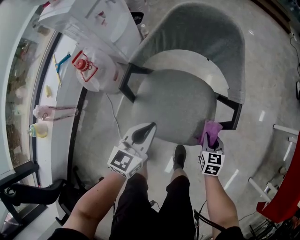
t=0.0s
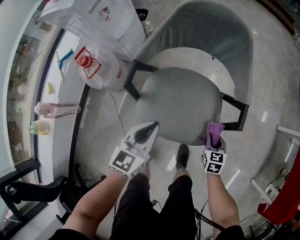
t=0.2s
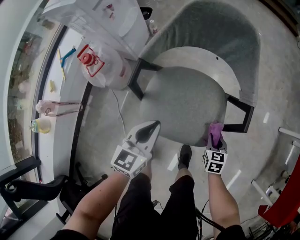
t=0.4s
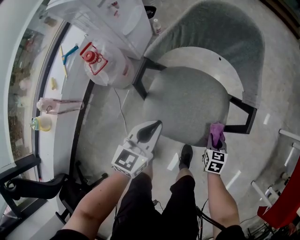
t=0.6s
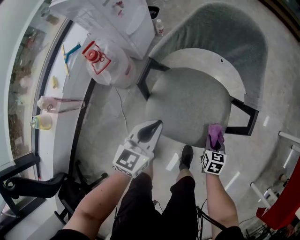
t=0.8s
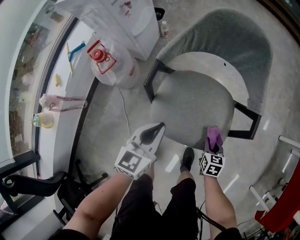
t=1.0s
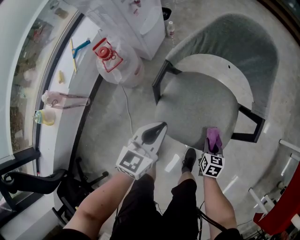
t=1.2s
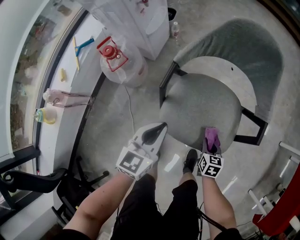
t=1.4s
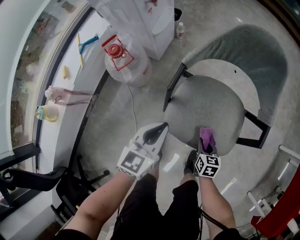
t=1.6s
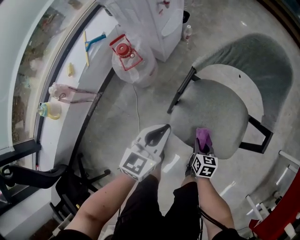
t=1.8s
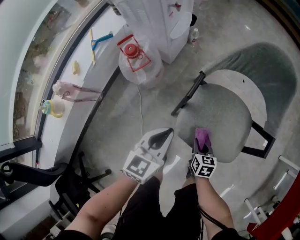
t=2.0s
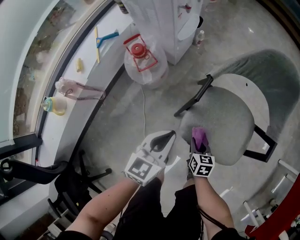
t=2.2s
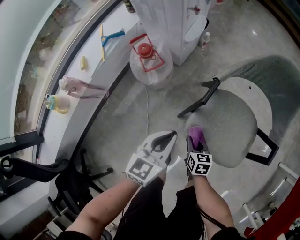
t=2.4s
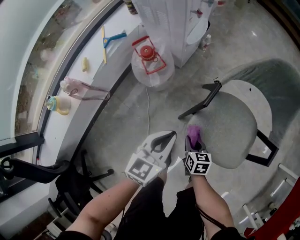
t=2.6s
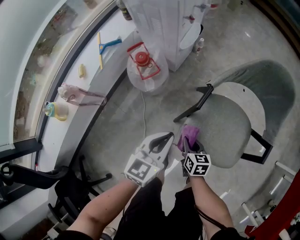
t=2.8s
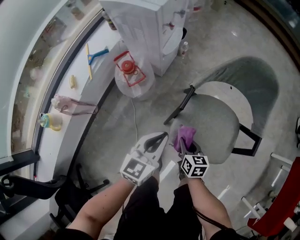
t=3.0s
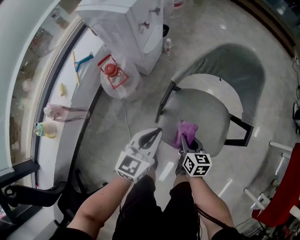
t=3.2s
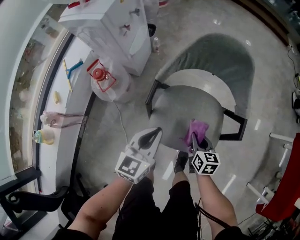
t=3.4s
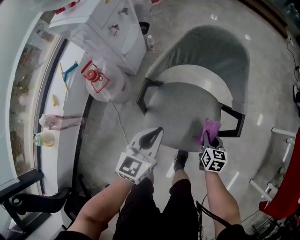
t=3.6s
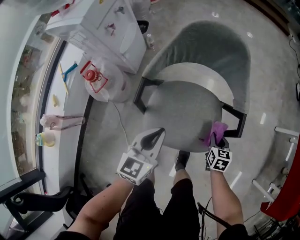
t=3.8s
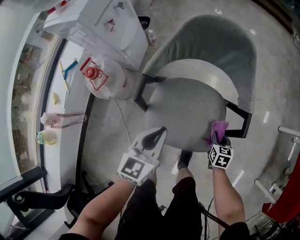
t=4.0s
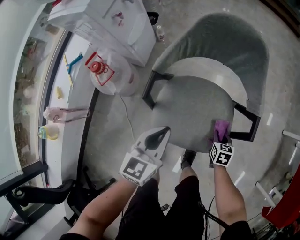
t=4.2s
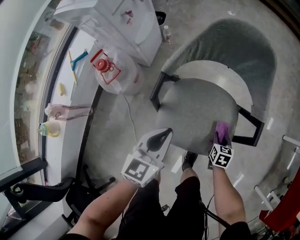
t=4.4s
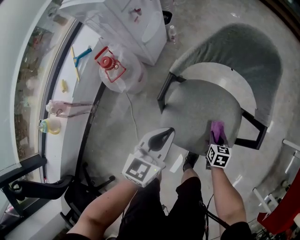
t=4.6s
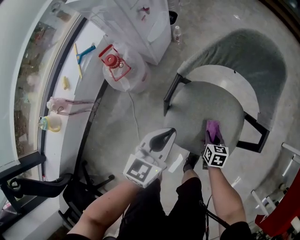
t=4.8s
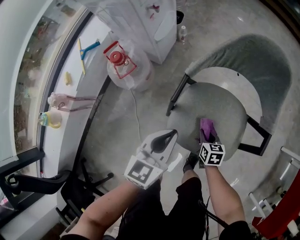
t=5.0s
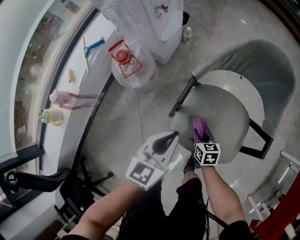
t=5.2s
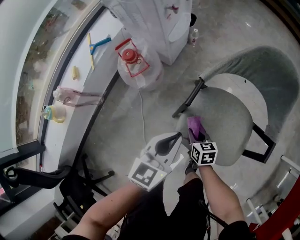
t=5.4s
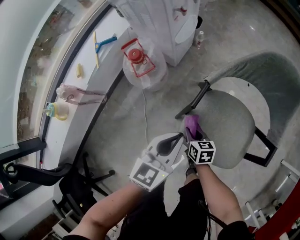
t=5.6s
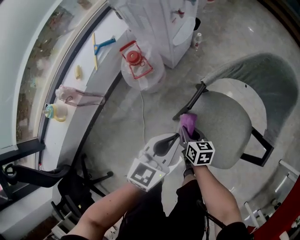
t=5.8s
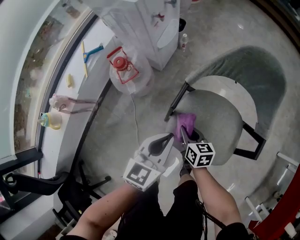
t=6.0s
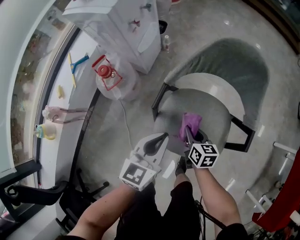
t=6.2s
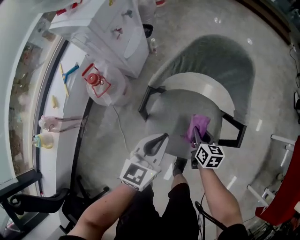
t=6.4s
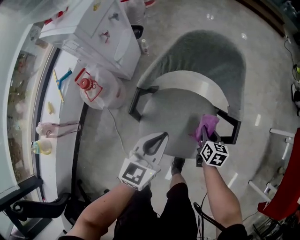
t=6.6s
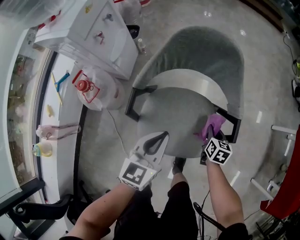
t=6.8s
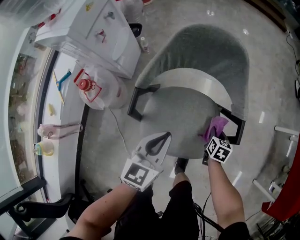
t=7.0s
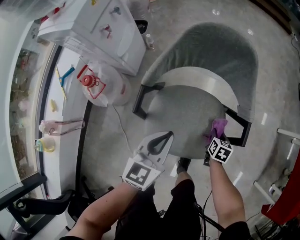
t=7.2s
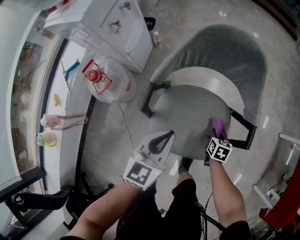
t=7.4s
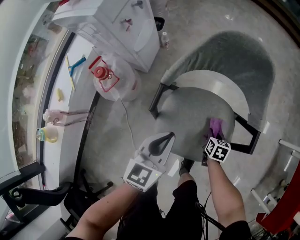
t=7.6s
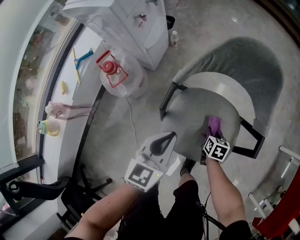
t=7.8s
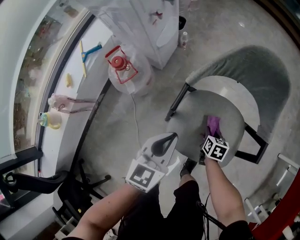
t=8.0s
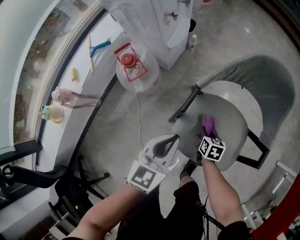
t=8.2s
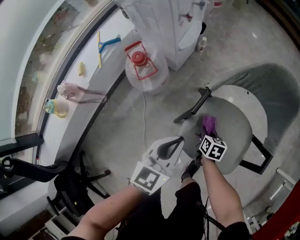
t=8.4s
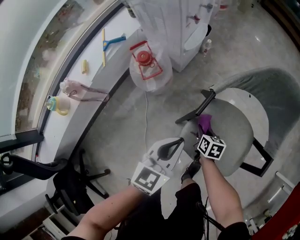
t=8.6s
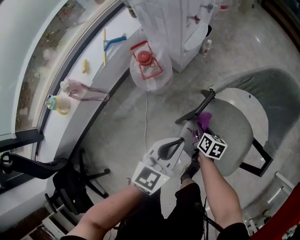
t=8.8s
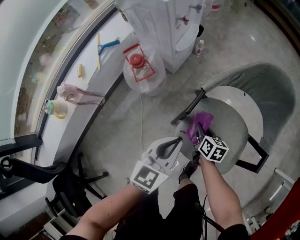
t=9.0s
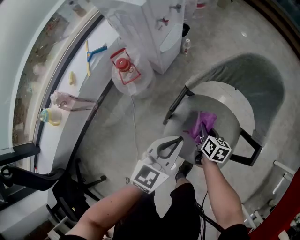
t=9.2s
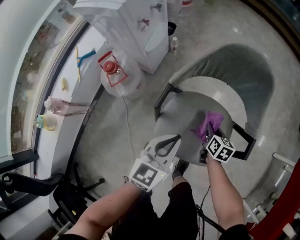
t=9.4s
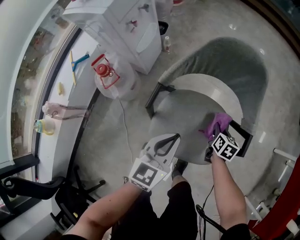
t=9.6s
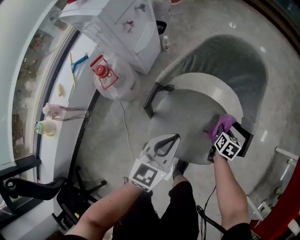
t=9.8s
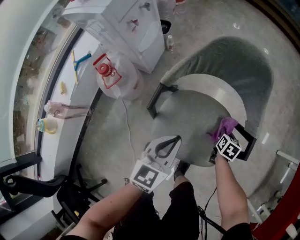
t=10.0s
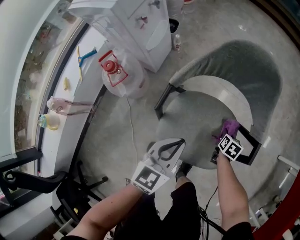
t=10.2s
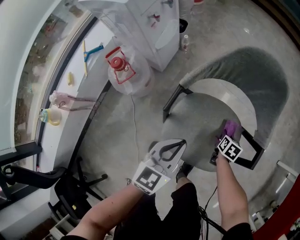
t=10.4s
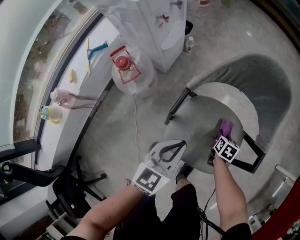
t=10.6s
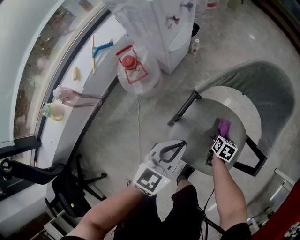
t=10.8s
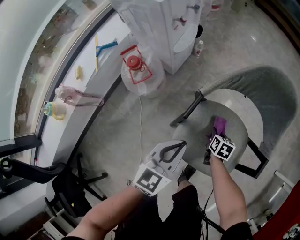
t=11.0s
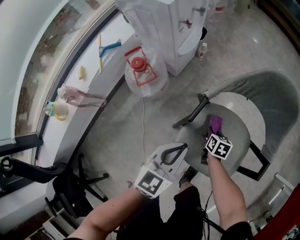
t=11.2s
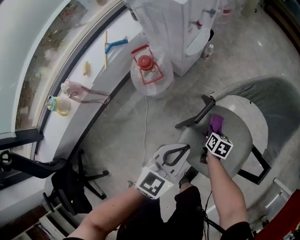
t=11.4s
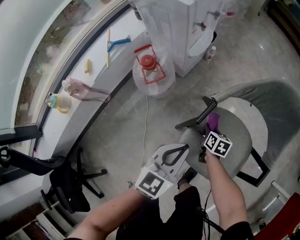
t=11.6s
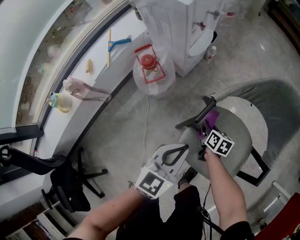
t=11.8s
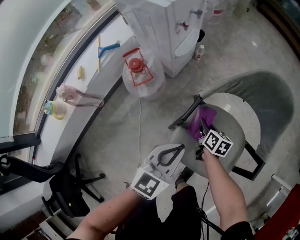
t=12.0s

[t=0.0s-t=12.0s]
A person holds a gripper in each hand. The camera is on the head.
t=0.0s to t=1.6s: The grippers both shift to the left by roughly 15 cm.
t=1.6s to t=3.0s: The left gripper travels to the left by about 5 cm; the right gripper shifts about 20 cm to the left and upward.
t=3.0s to t=4.4s: The left gripper travels to the right by roughly 10 cm. The right gripper is displaced to the right by approximately 25 cm, and swivels about 30 degrees.
t=4.4s to t=6.0s: The left gripper changes place by some 5 cm. Meanwhile the right gripper ends up roughly 30 cm from where it was, and turns by some 30 degrees.
t=6.0s to t=7.6s: The right gripper ends up approximately 25 cm from where it was, and turns by roughly 30 degrees.
t=7.6s to t=9.0s: The left gripper moves to the left, roughly 10 cm, while the right gripper moves to the left, about 20 cm, and rotates about 30 degrees.
t=9.0s to t=10.4s: The left gripper changes place by approximately 10 cm. The right gripper moves about 25 cm, and turns by roughly 30 degrees.
t=10.4s to t=12.0s: The left gripper changes place by some 10 cm; the right gripper moves some 25 cm, and rotates some 30 degrees.

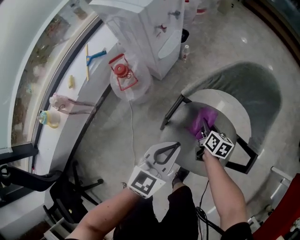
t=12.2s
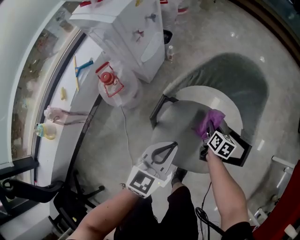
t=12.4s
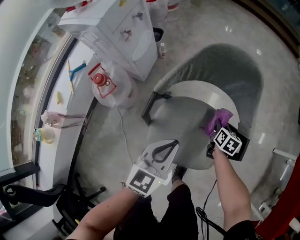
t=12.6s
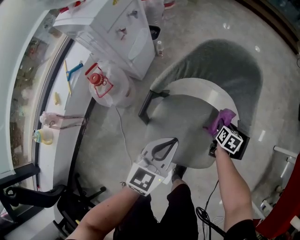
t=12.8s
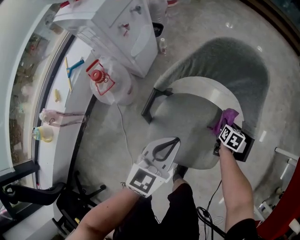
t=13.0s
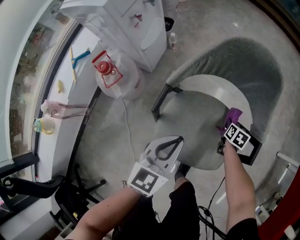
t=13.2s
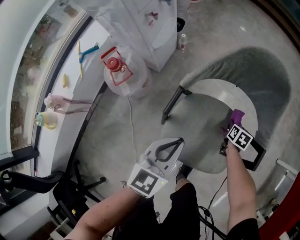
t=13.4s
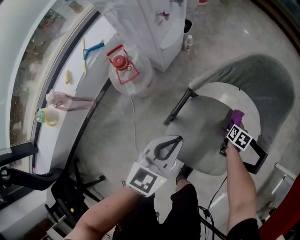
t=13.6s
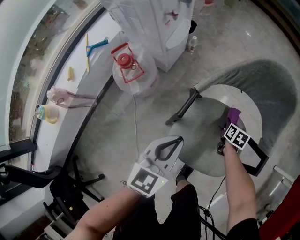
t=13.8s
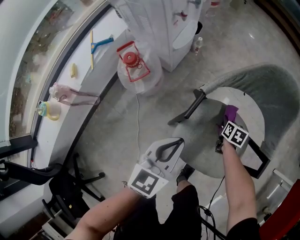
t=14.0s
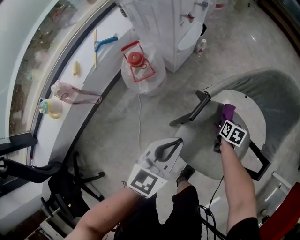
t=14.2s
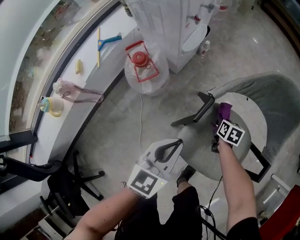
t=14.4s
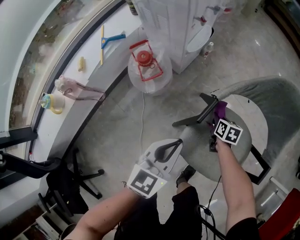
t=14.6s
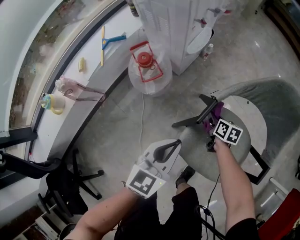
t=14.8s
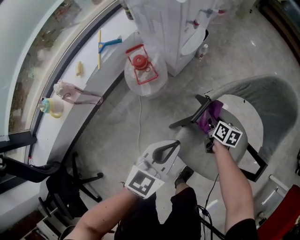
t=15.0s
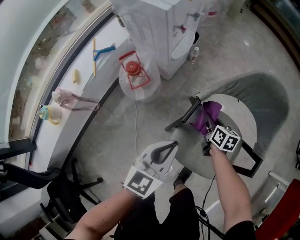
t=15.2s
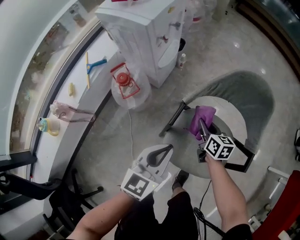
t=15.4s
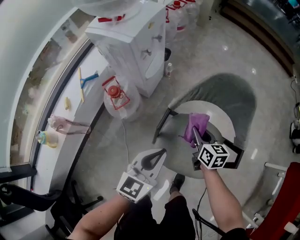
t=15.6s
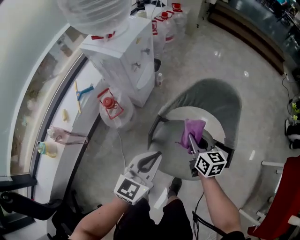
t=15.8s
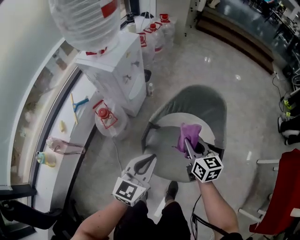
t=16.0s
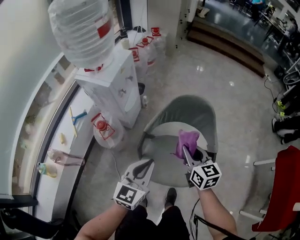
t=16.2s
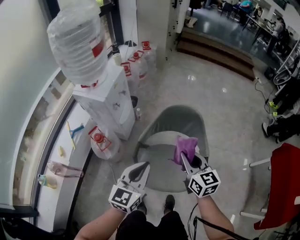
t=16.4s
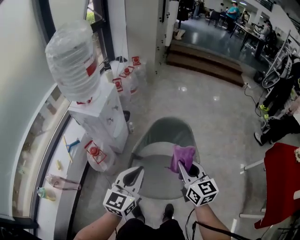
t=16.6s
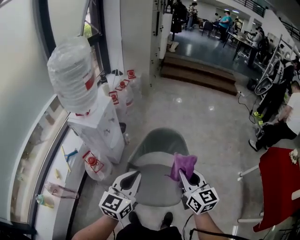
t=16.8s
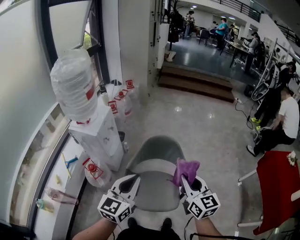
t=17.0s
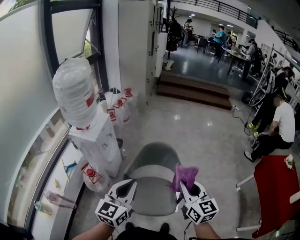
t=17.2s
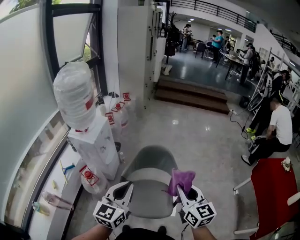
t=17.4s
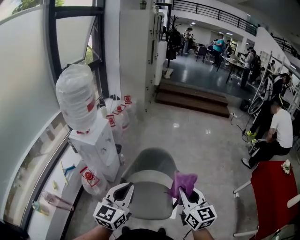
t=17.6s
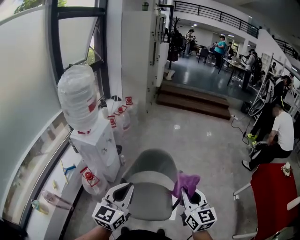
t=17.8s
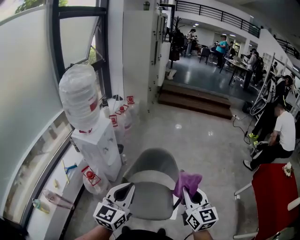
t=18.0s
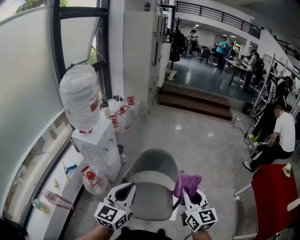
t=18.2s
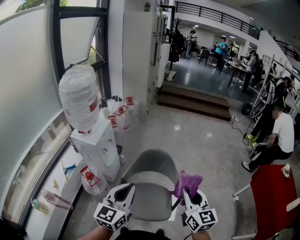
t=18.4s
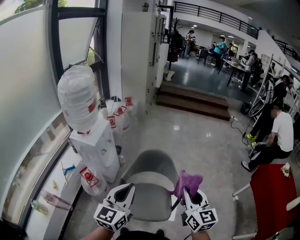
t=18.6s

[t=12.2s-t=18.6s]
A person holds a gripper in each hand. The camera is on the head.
t=12.2s to t=13.8s: The left gripper moves approximately 10 cm to the right and comes back, while the right gripper moves to the right and downward, approximately 15 cm, and changes its angle by roughly 20 degrees.
t=13.8s to t=15.4s: The left gripper is displaced upward by about 5 cm, while the right gripper is displaced upward and to the left by about 20 cm, and rotates about 30 degrees.
t=15.4s to t=17.0s: The left gripper goes some 30 cm upward; the right gripper is displaced upward and to the right by approximately 50 cm, and turns by about 40 degrees.
t=17.0s to t=18.6s: The left gripper travels upward by approximately 5 cm. Meanwhile the right gripper is displaced to the right and upward by about 10 cm.

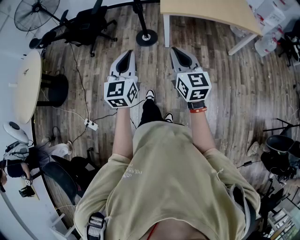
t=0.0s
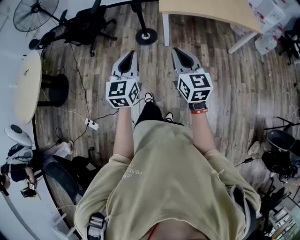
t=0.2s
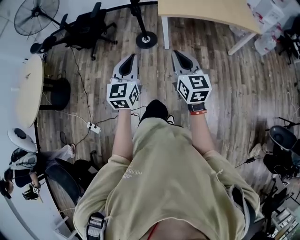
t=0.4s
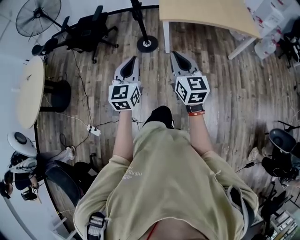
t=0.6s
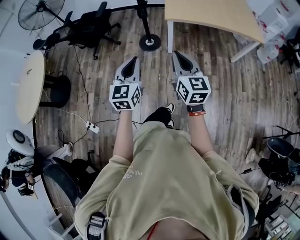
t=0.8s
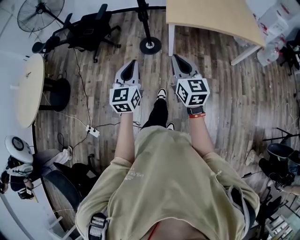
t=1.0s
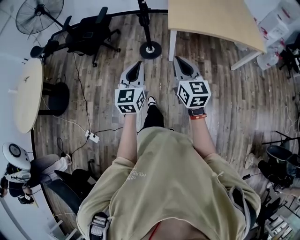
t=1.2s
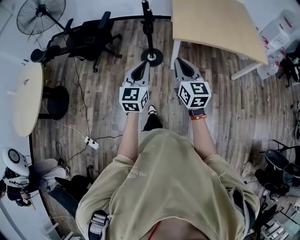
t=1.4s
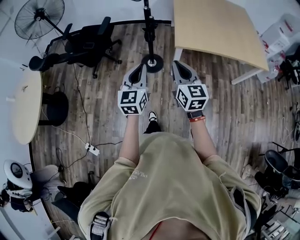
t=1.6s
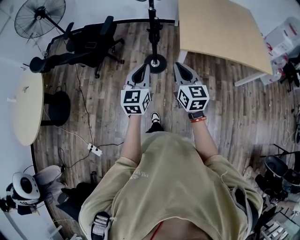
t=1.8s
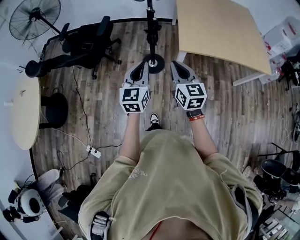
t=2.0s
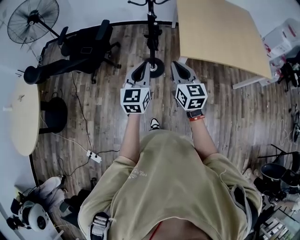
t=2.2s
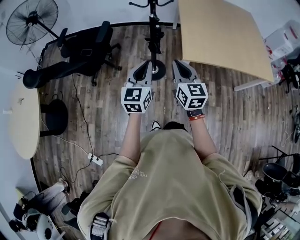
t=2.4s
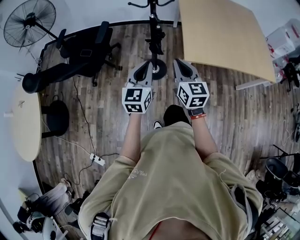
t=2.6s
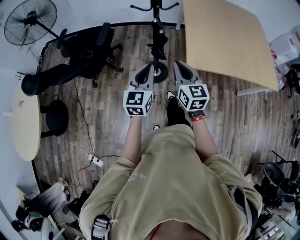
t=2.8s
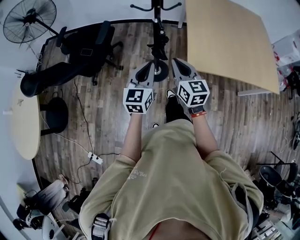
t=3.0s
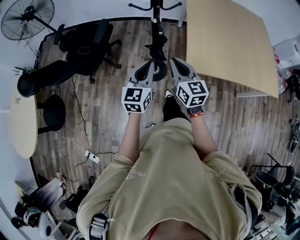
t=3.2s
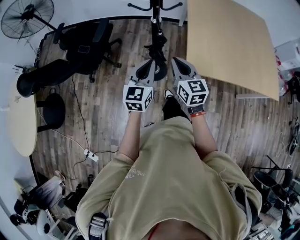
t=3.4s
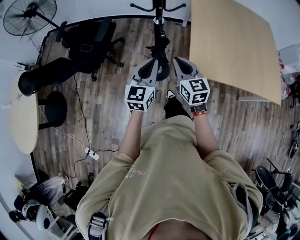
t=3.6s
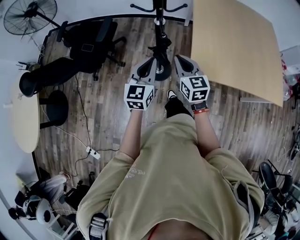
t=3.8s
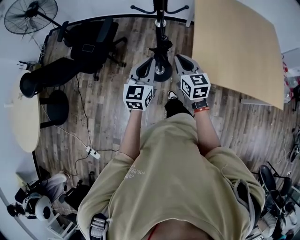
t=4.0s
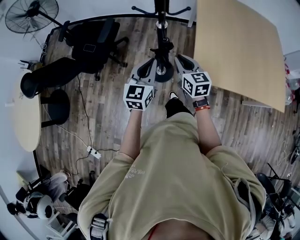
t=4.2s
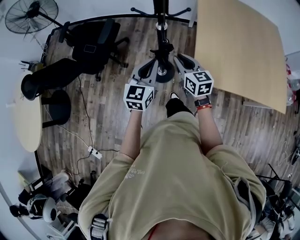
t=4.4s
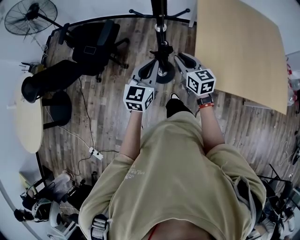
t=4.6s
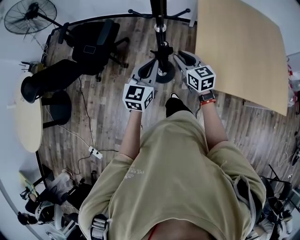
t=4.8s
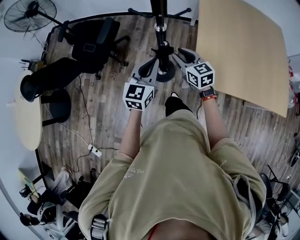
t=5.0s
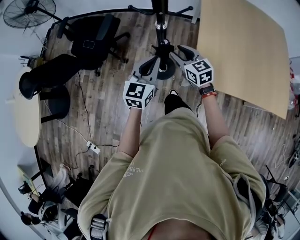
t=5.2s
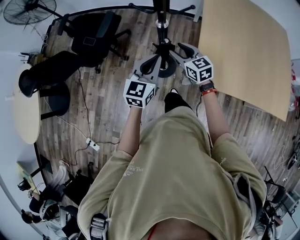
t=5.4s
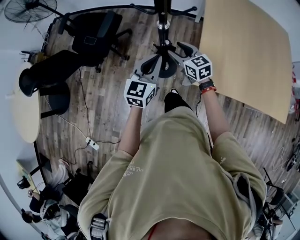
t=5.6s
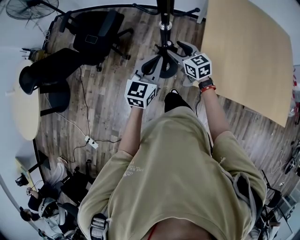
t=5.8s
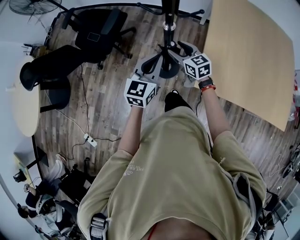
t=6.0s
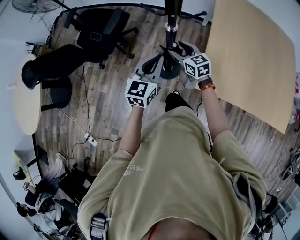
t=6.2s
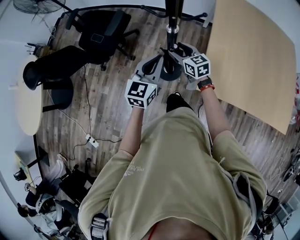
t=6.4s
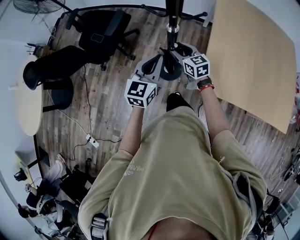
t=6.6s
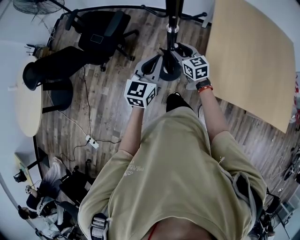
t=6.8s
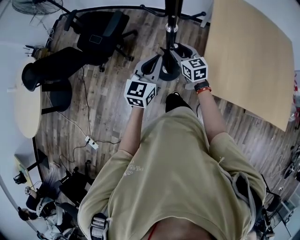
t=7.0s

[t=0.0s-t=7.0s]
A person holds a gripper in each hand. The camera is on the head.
t=0.0s to t=1.4s: The grippers both shift forward by about 20 cm.
t=1.4s to t=2.8s: The two grippers go about 35 cm forward.
t=2.8s to t=4.2s: The left gripper travels forward by about 15 cm. The right gripper goes some 20 cm forward and downward.
t=4.2s to t=5.6s: The right gripper shifts some 10 cm forward and downward, and opens its fingers; the left gripper moves forward, some 5 cm.
t=5.6s to t=7.0s: The grippers move only a little.
